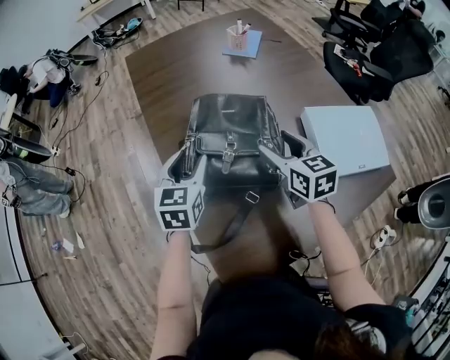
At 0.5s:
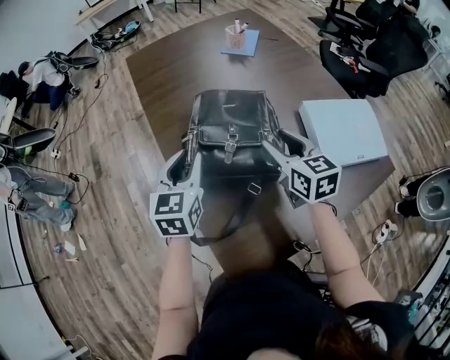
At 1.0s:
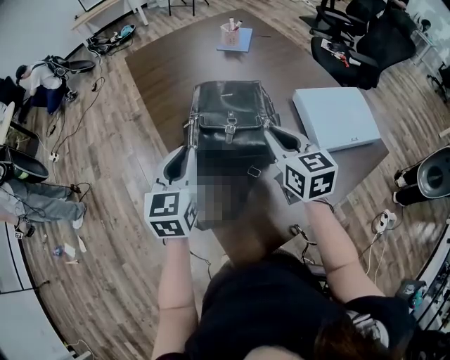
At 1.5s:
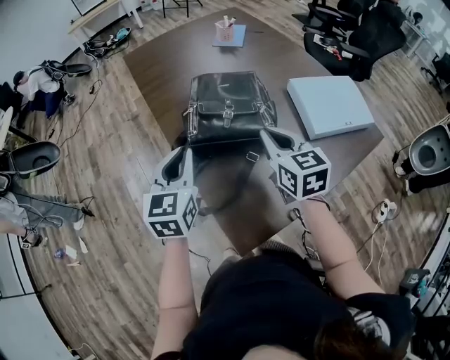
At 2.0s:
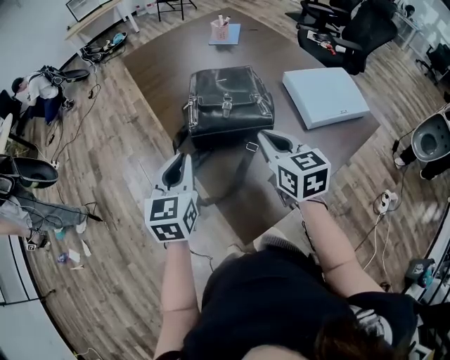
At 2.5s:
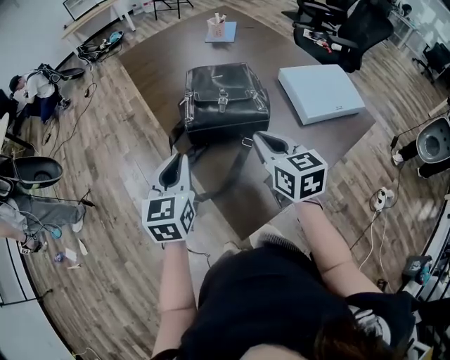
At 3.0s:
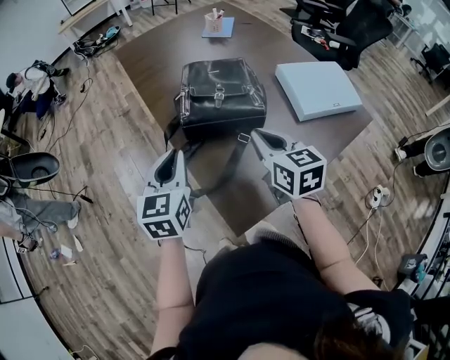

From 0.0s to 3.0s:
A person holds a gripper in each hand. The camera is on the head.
From 0.0s to 1.5s: The left gripper heads backward and upward, covering some 15 cm, and closes its fingers. Meanwhile the right gripper goes roughly 15 cm backward, and closes.
From 1.5s to 3.0s: The grippers both shift backward by approximately 5 cm.

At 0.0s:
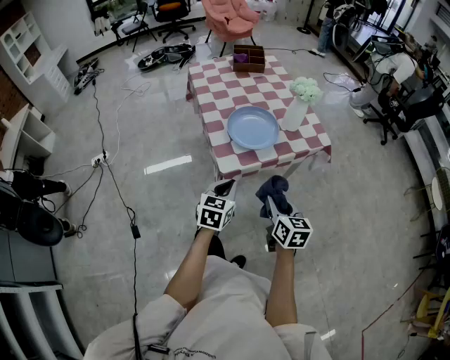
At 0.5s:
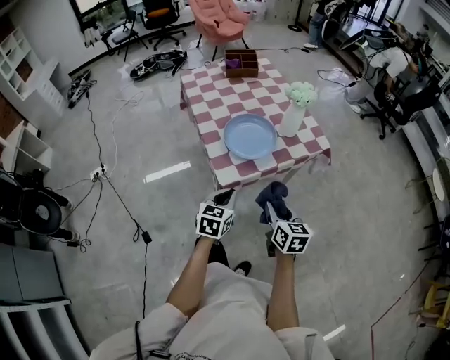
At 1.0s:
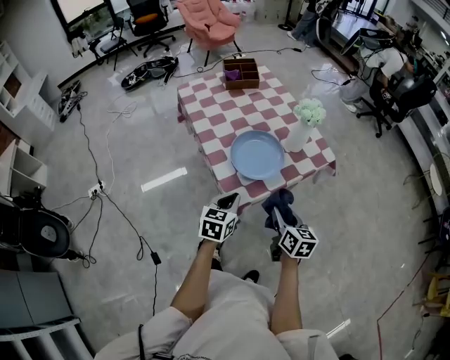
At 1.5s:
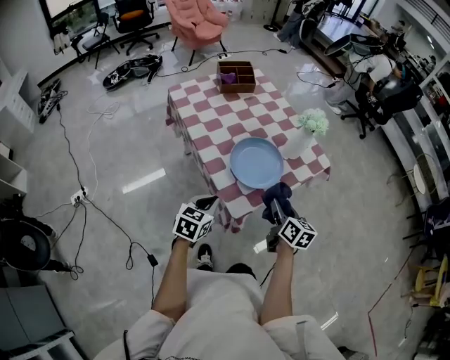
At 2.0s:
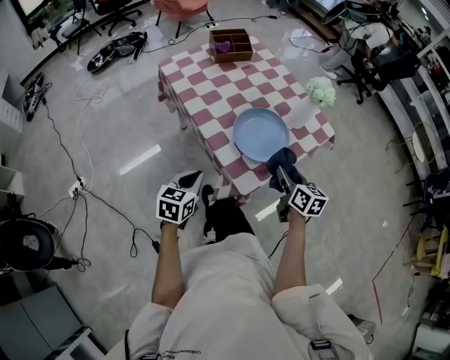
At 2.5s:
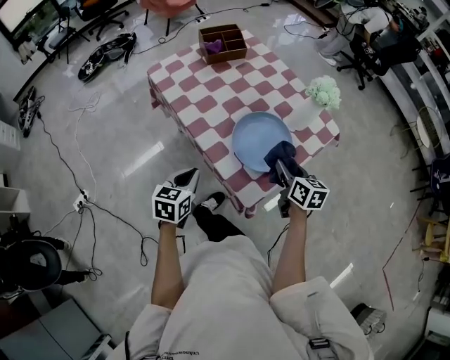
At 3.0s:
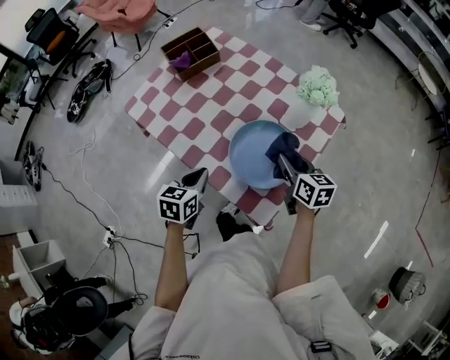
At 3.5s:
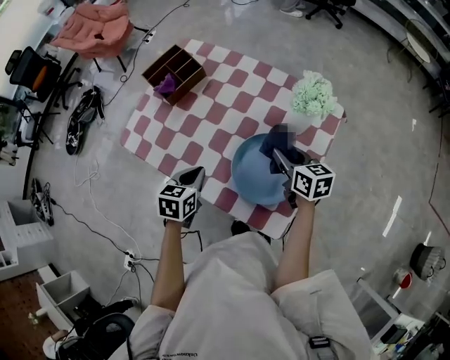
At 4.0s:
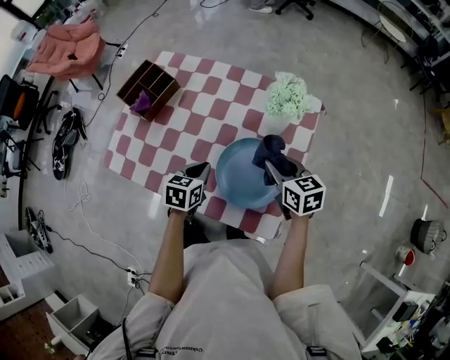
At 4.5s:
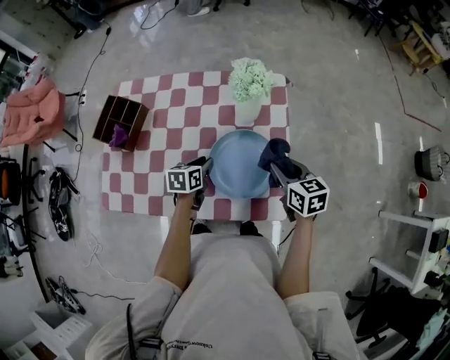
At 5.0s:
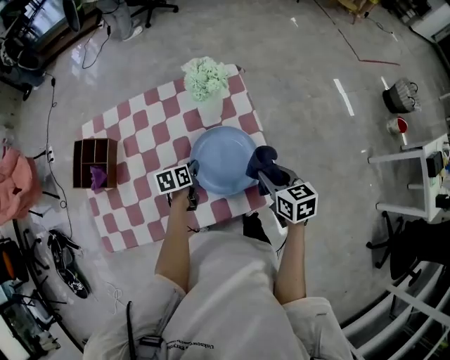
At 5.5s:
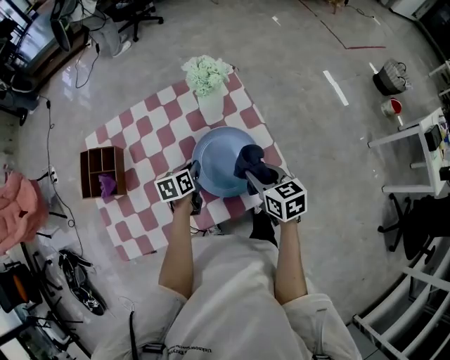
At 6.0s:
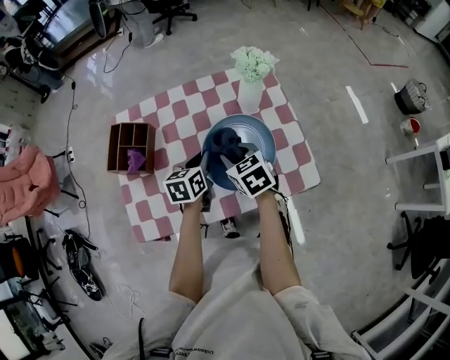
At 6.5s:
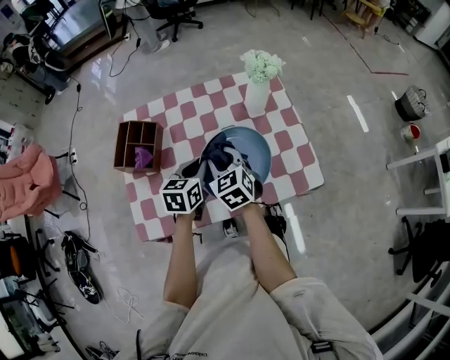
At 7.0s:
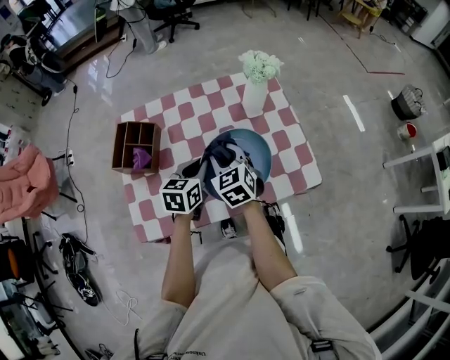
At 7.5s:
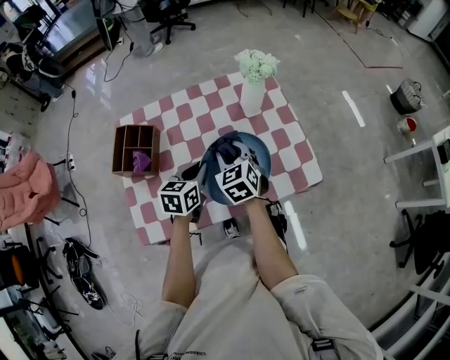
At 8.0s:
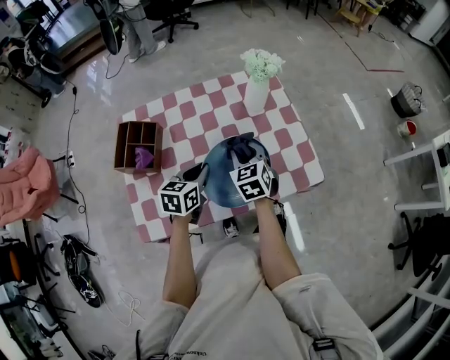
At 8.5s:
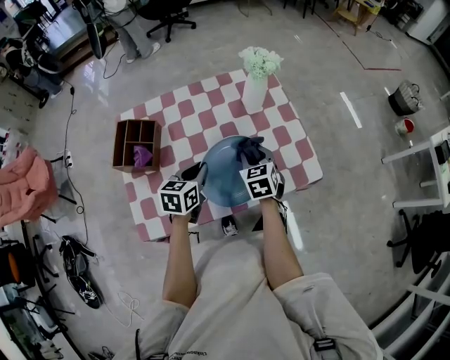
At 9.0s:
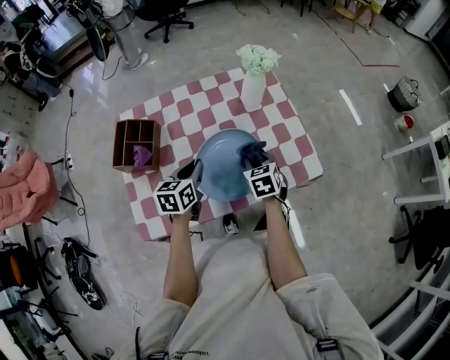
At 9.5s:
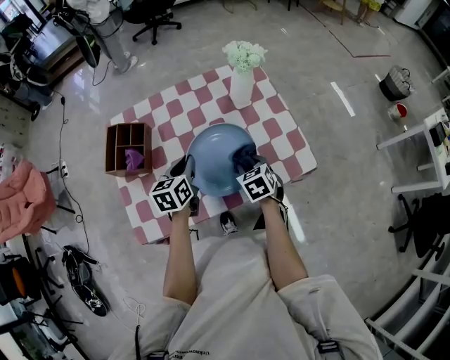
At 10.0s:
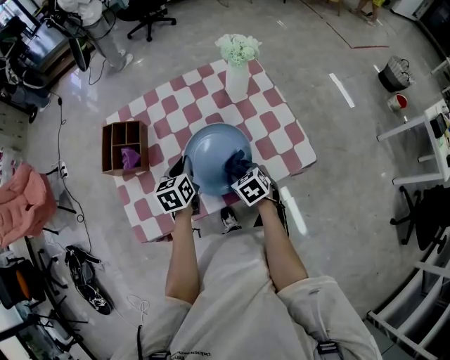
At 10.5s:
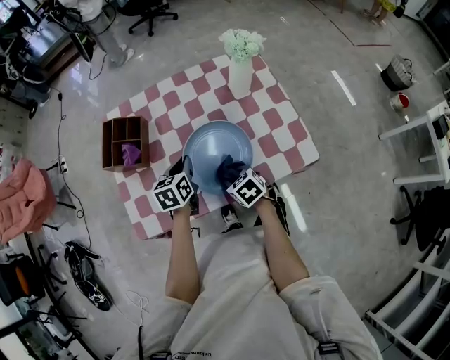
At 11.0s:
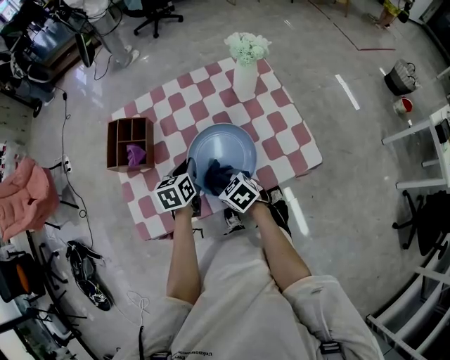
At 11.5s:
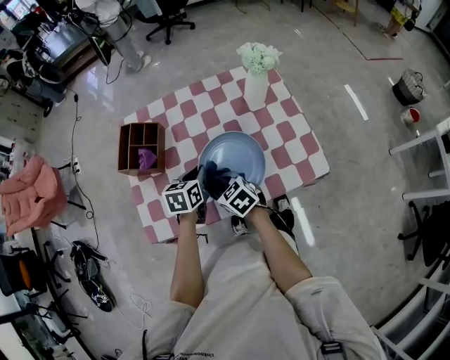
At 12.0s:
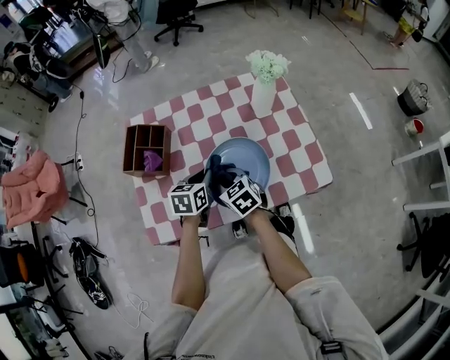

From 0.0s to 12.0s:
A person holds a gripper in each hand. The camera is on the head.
From 0.0s to 2.0s: The left gripper moves to the left and forward, some 25 cm; the right gripper shifts roughly 20 cm forward and to the left.
From 2.0s to 4.0s: The left gripper moves about 35 cm, and rotates some 40 degrees. Meanwhile the right gripper ends up approximately 15 cm from where it was.
From 4.0s to 6.0s: The right gripper shifts by about 20 cm, and turns by about 30 degrees. The left gripper moves roughly 10 cm downward and comes back, and rotates some 20 degrees.
From 6.0s to 8.0s: The left gripper travels backward by about 5 cm. Meanwhile the right gripper rotates roughly 20 degrees.
From 8.0s to 10.0s: The right gripper travels downward and backward by some 15 cm, and swivels about 30 degrees.
From 10.0s to 12.0s: The right gripper shifts about 15 cm to the left, upward and forward, and changes its angle by some 20 degrees.

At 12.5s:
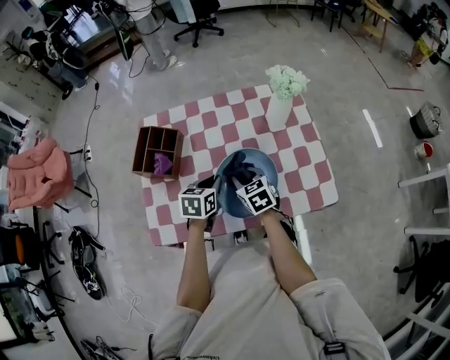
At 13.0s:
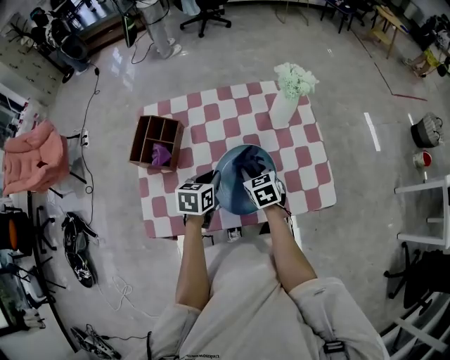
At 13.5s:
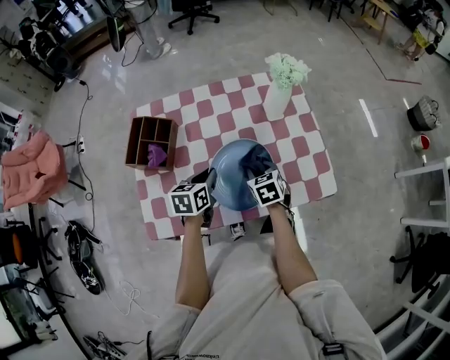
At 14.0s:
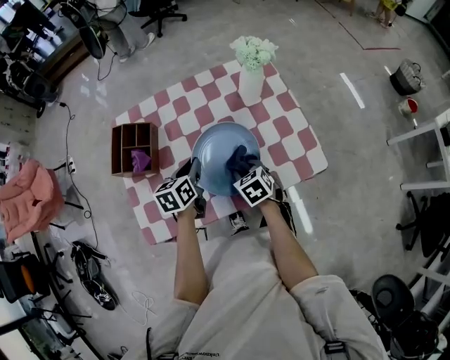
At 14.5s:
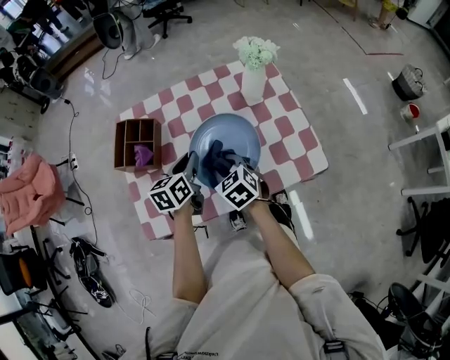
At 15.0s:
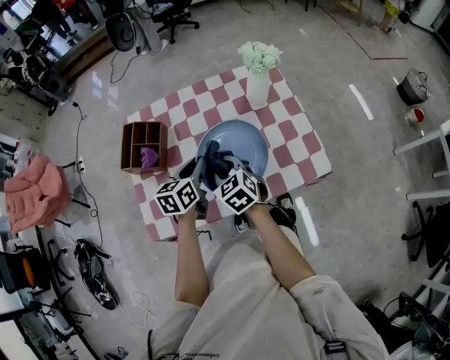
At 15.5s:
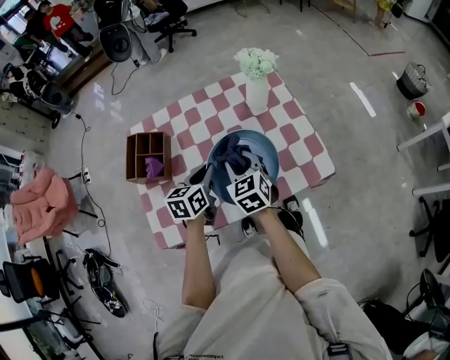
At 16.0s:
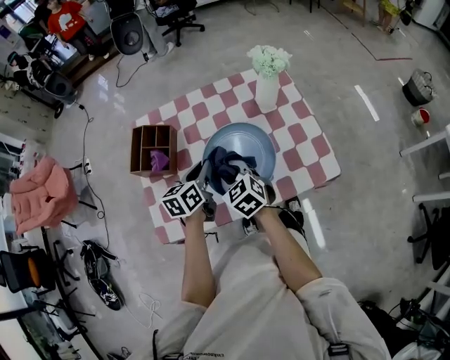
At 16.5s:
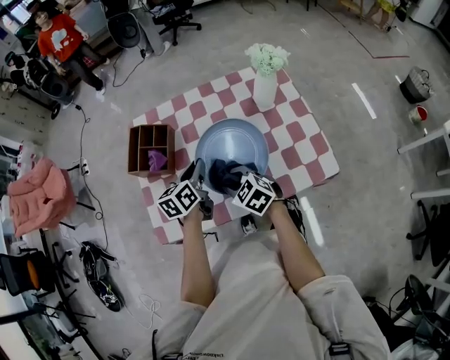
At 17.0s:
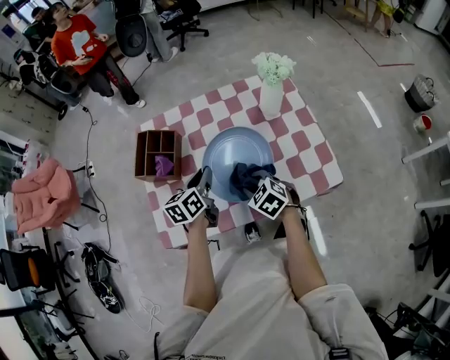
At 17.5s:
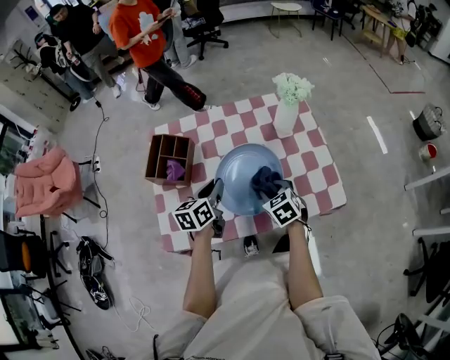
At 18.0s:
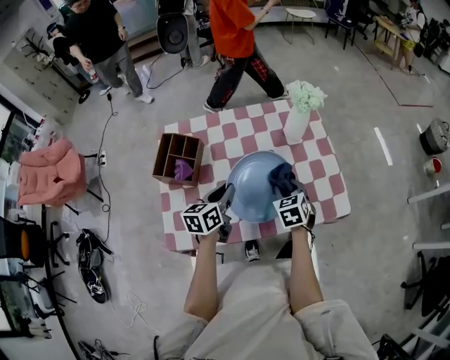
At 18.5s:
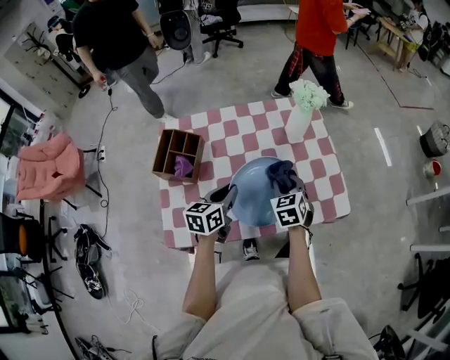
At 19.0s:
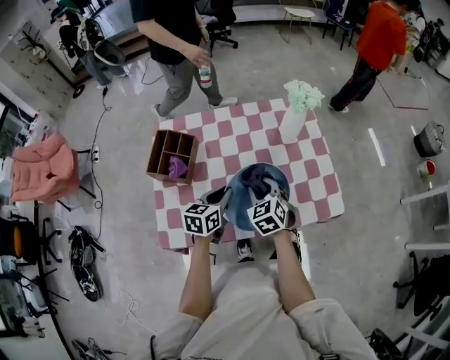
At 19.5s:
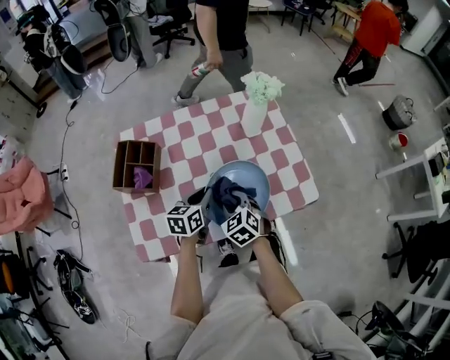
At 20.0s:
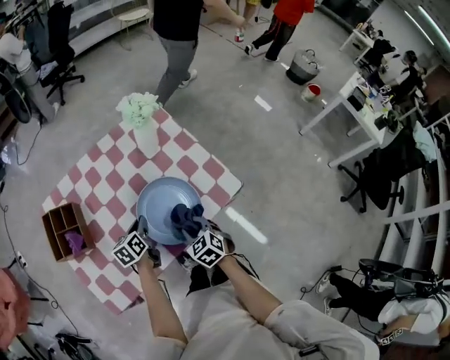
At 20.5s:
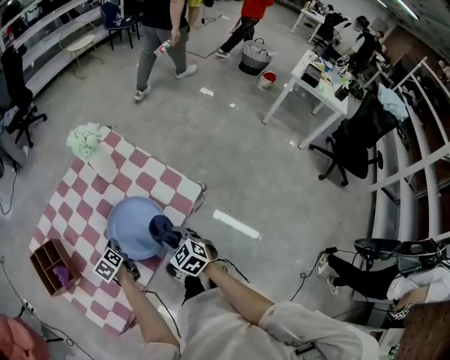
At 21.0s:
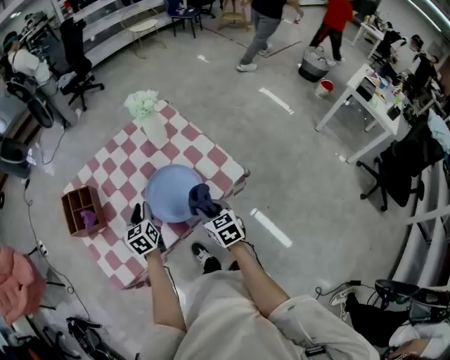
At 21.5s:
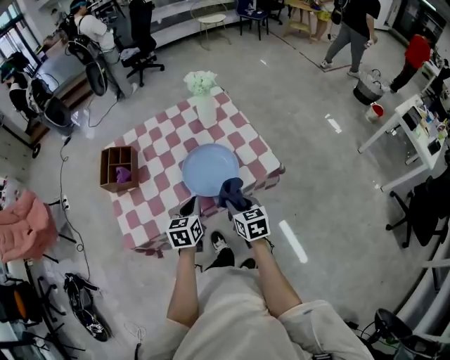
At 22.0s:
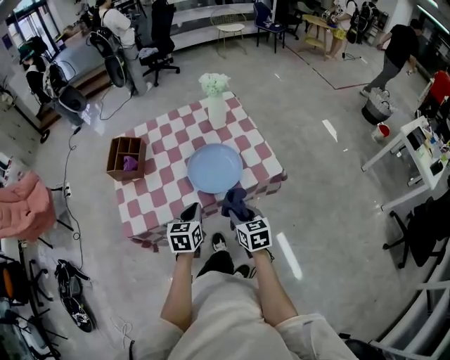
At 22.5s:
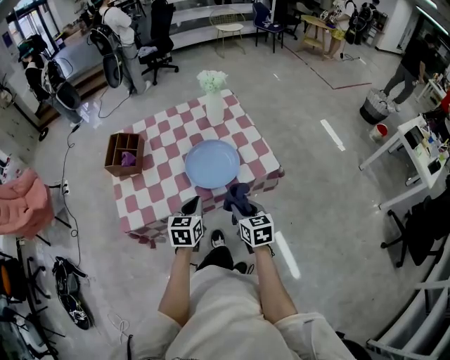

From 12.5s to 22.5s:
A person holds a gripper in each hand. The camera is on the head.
From 12.5s to 14.5s: The right gripper travels to the right and back again, roughly 5 cm each way.
From 16.5s to 18.5s: The right gripper shifts by roughly 15 cm, and swivels some 40 degrees.
From 18.5s to 20.5s: The right gripper shifts some 15 cm backward and to the right. The left gripper goes about 15 cm downward and to the right, and rotates some 20 degrees.
From 20.5s to 22.5s: The right gripper heads backward, covering some 10 cm, and turns by roughly 20 degrees. Meanwhile the left gripper goes approximately 25 cm backward and upward, and swivels approximately 30 degrees.

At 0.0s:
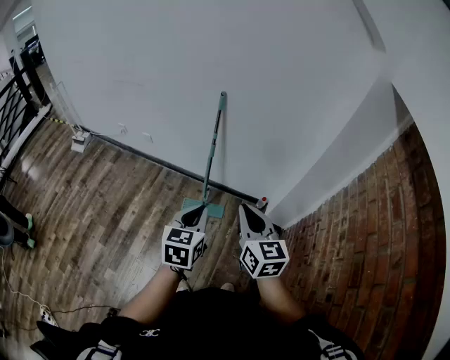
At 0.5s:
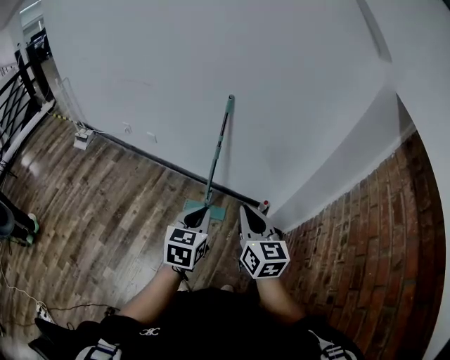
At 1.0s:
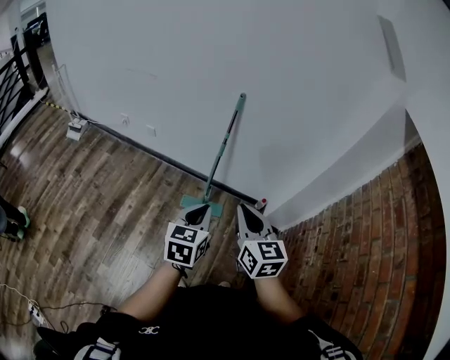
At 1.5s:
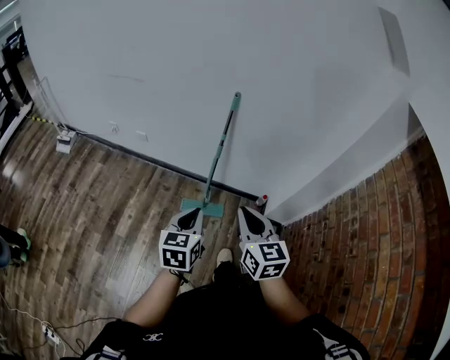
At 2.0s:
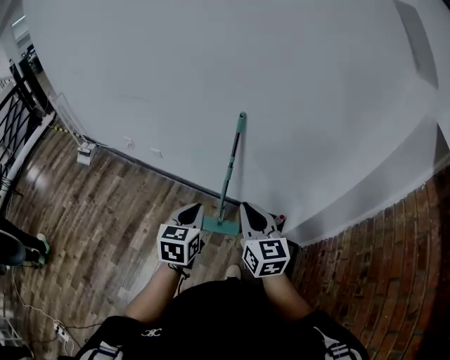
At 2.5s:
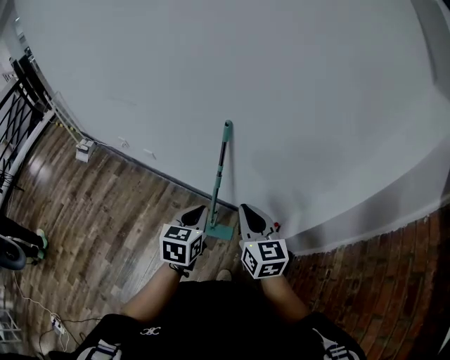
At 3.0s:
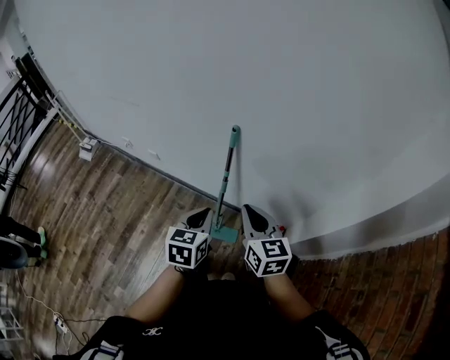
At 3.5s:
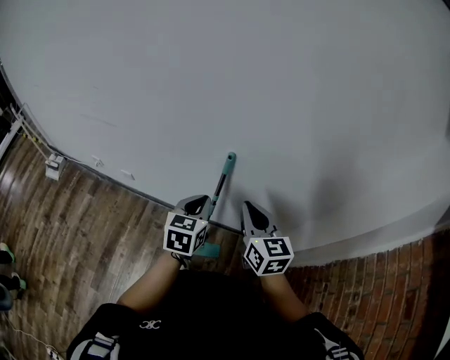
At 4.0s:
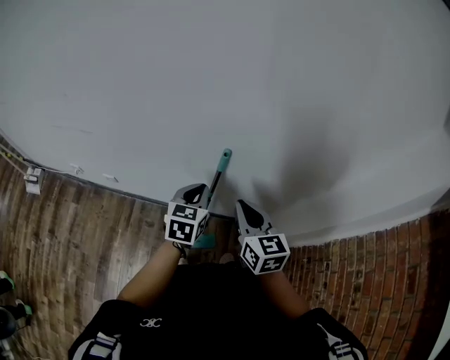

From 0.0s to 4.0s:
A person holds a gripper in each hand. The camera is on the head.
From 0.0s to 2.0s: The two grippers go roughly 20 cm forward and to the left.
From 2.0s to 4.0s: Both grippers travel together forward, approximately 25 cm.
